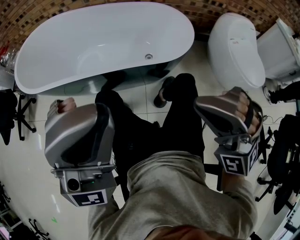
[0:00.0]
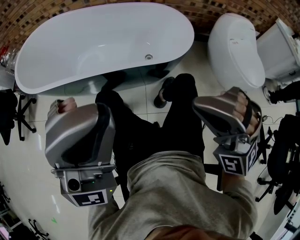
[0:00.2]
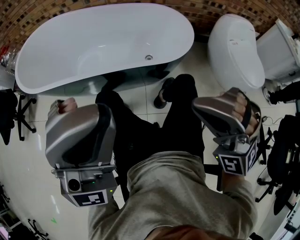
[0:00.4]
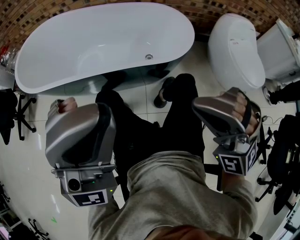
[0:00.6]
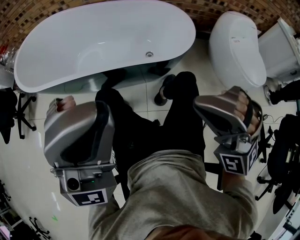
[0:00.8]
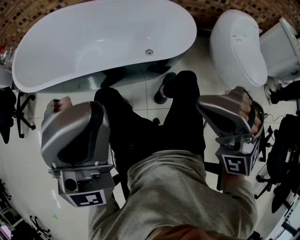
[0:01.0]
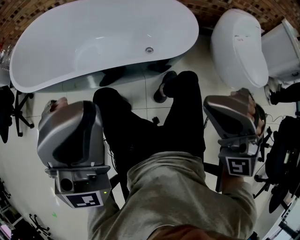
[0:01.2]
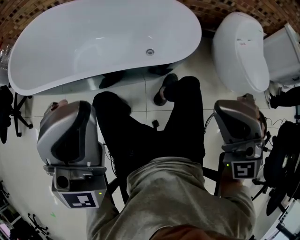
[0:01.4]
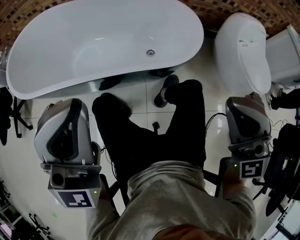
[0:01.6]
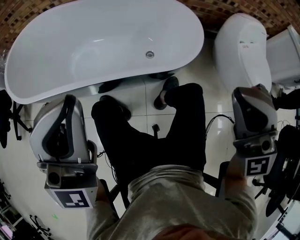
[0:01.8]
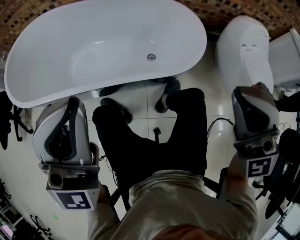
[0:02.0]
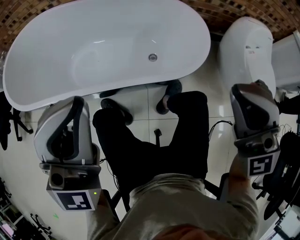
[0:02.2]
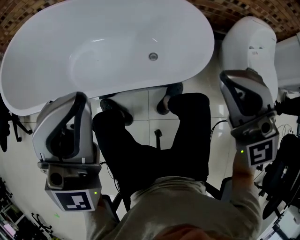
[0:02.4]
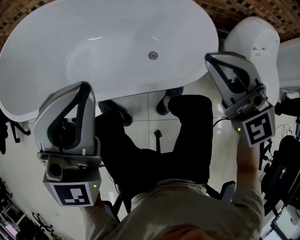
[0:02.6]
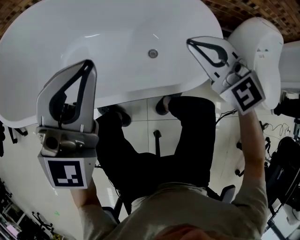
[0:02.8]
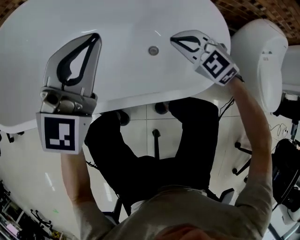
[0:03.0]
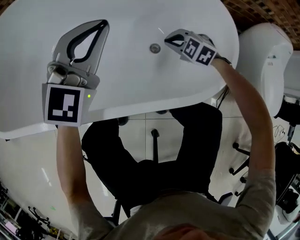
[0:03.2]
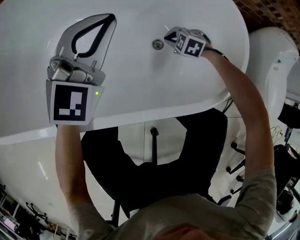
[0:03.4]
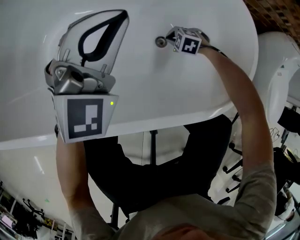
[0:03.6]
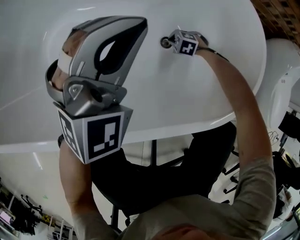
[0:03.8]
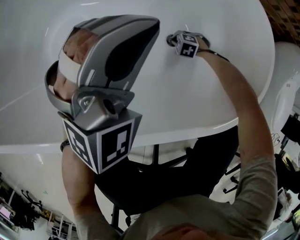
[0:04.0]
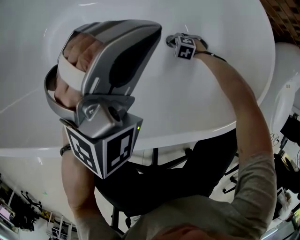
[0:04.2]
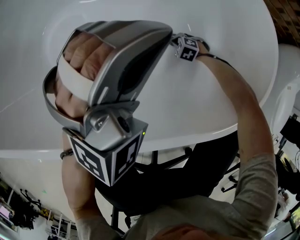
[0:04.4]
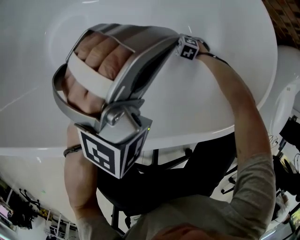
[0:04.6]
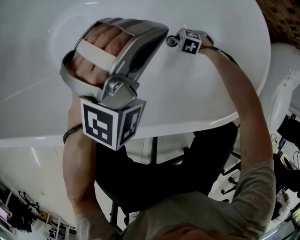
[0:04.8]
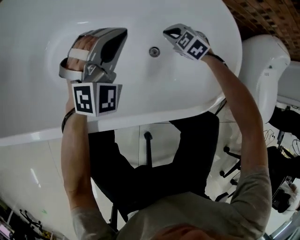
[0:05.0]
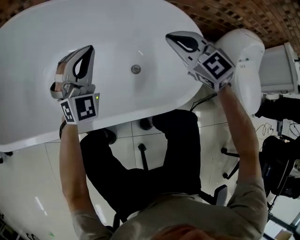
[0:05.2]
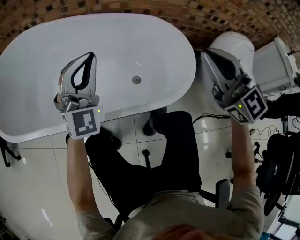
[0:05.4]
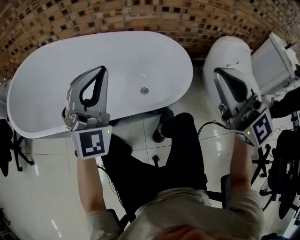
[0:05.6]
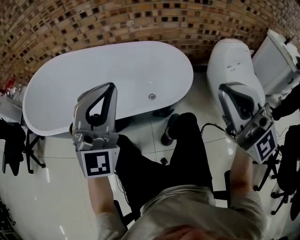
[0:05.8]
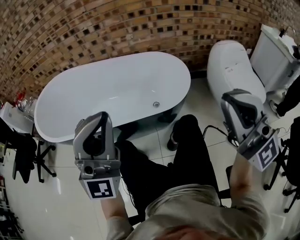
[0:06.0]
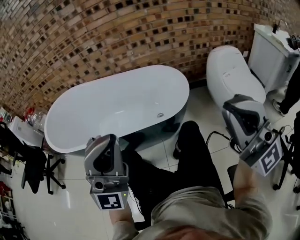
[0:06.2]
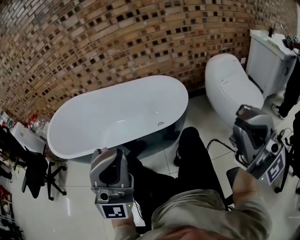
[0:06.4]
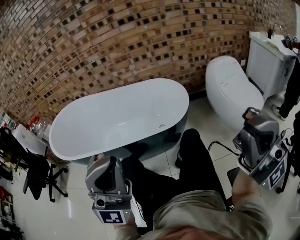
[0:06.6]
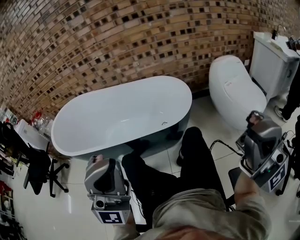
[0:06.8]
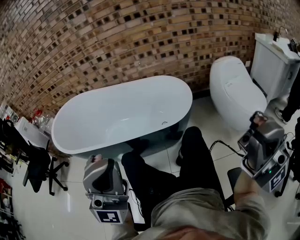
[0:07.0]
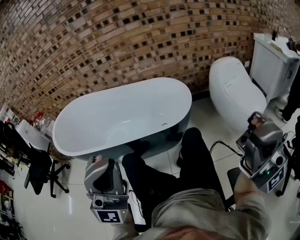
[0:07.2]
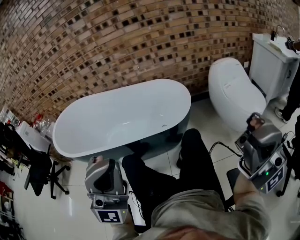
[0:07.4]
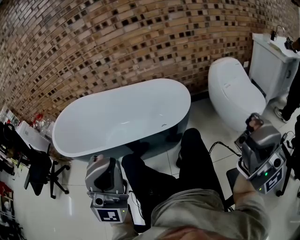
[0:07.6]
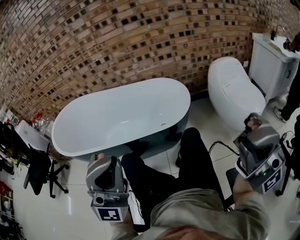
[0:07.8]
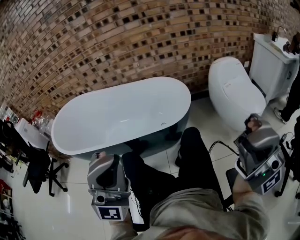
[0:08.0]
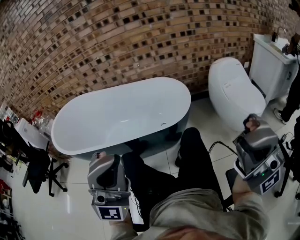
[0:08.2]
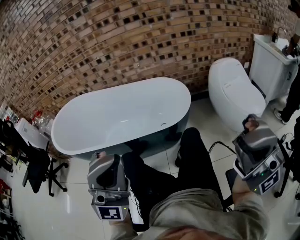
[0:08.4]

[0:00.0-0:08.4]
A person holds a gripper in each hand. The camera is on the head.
0:00.0 to 0:01.4: The left gripper is displaced forward by roughly 5 cm.
0:01.4 to 0:02.8: The two grippers go about 30 cm forward and downward. The right gripper turns by approximately 30 degrees.
0:02.8 to 0:04.2: The left gripper travels downward by about 20 cm, and changes its angle by some 30 degrees. Meanwhile the right gripper heads downward, covering roughly 60 cm, and points its fingers some 60 degrees further downward.
0:04.2 to 0:05.6: The left gripper travels upward by about 25 cm, and changes its angle by approximately 30 degrees. The right gripper shifts some 80 cm upward, and tips its fingers upward by about 90 degrees.
0:05.6 to 0:07.0: The grippers both shift backward by some 35 cm. The right gripper tips its fingers upward by about 30 degrees, while the left gripper turns by roughly 30 degrees.
0:07.0 to 0:08.4: The grippers stay close to where they were, moving slightly.

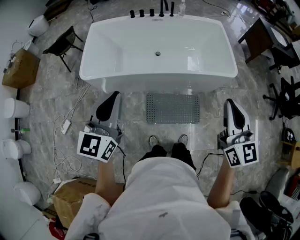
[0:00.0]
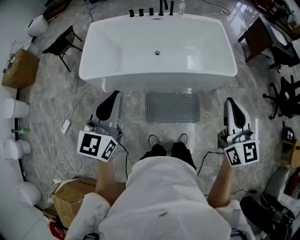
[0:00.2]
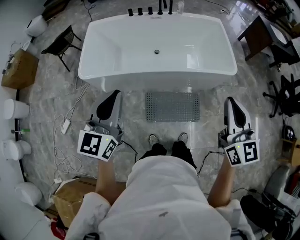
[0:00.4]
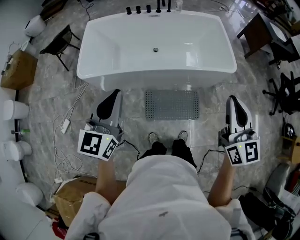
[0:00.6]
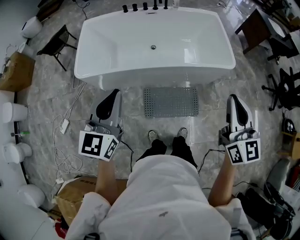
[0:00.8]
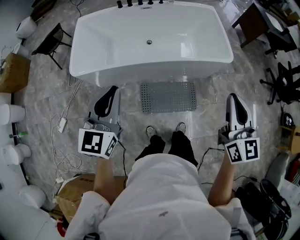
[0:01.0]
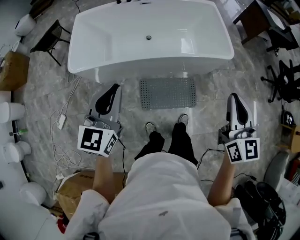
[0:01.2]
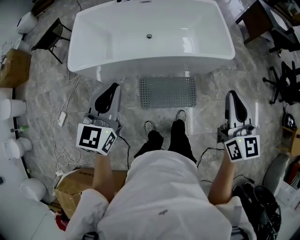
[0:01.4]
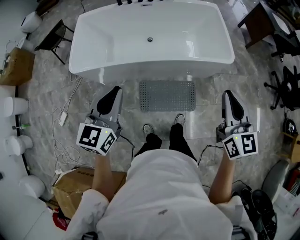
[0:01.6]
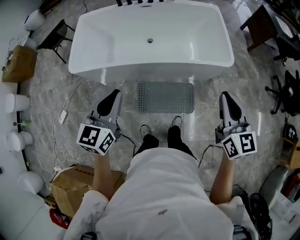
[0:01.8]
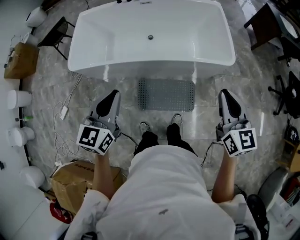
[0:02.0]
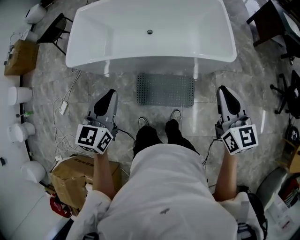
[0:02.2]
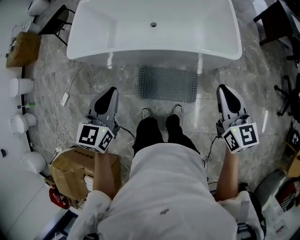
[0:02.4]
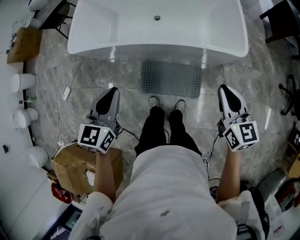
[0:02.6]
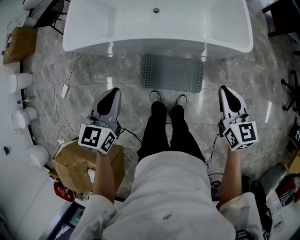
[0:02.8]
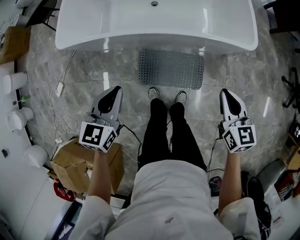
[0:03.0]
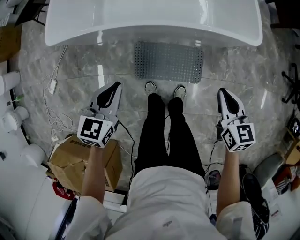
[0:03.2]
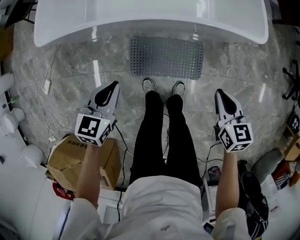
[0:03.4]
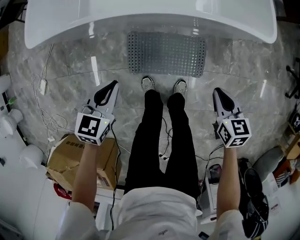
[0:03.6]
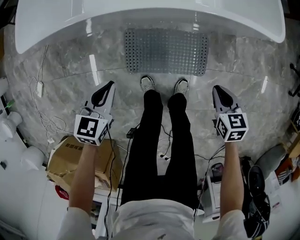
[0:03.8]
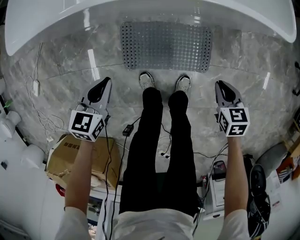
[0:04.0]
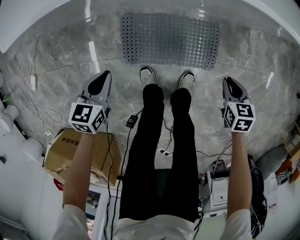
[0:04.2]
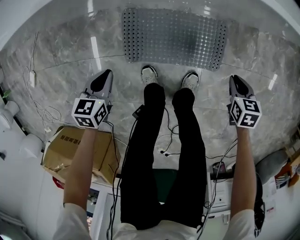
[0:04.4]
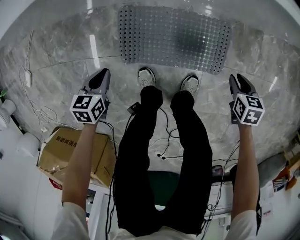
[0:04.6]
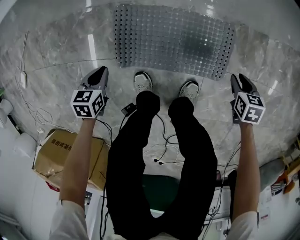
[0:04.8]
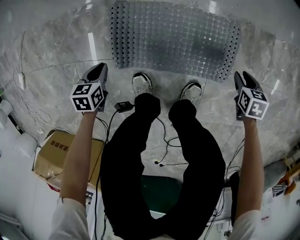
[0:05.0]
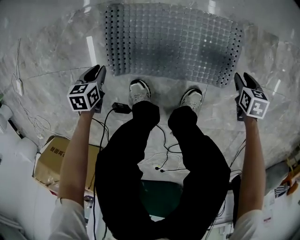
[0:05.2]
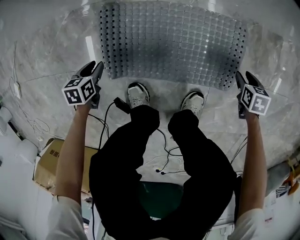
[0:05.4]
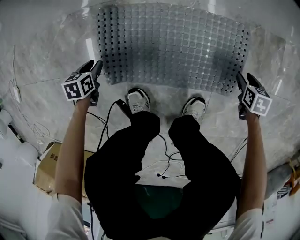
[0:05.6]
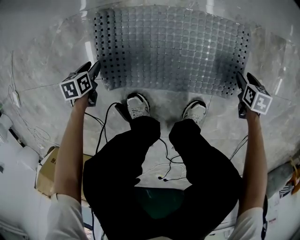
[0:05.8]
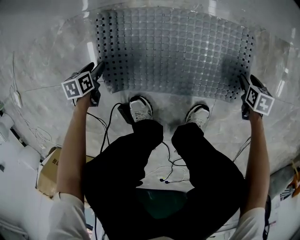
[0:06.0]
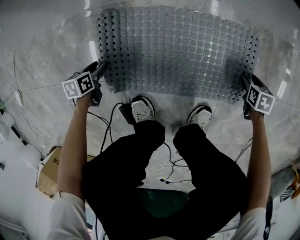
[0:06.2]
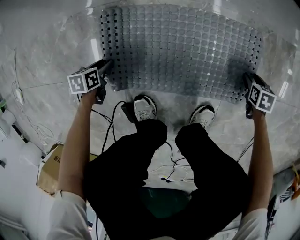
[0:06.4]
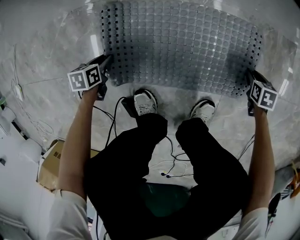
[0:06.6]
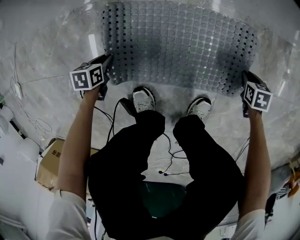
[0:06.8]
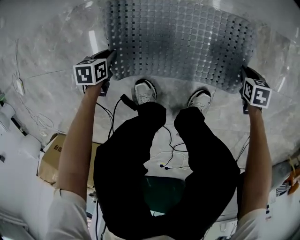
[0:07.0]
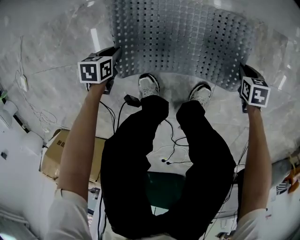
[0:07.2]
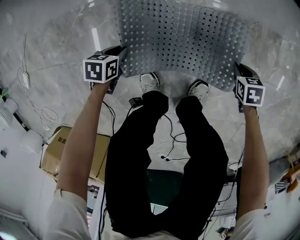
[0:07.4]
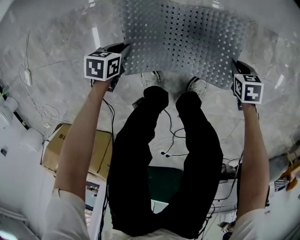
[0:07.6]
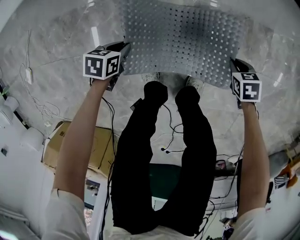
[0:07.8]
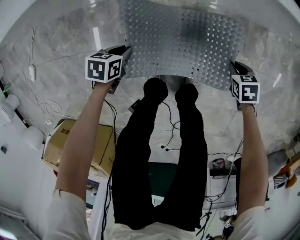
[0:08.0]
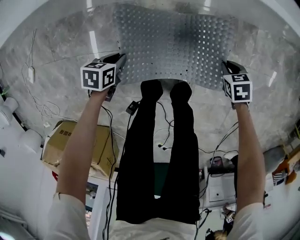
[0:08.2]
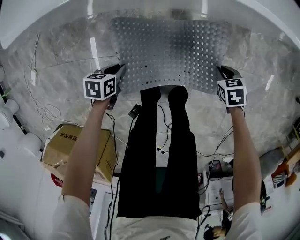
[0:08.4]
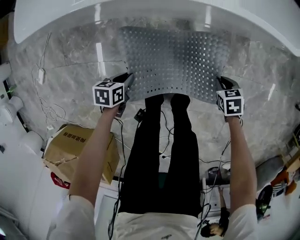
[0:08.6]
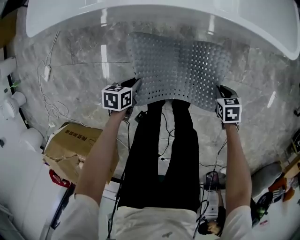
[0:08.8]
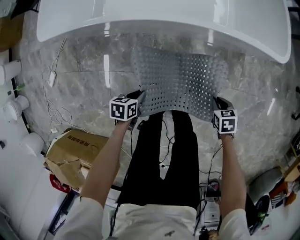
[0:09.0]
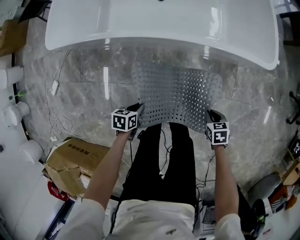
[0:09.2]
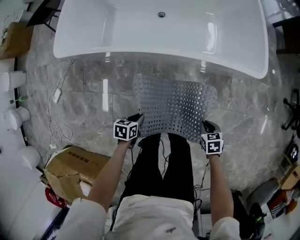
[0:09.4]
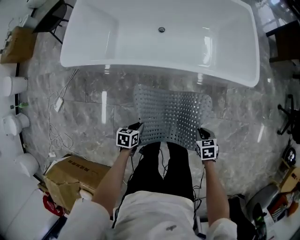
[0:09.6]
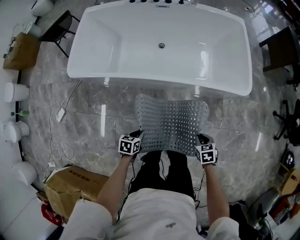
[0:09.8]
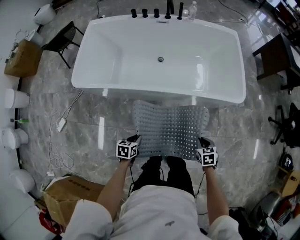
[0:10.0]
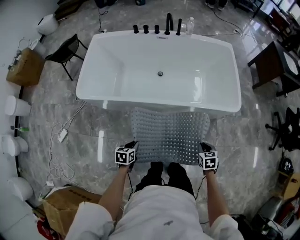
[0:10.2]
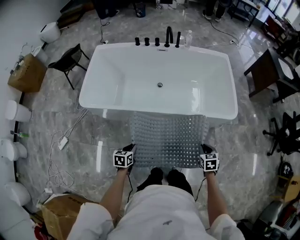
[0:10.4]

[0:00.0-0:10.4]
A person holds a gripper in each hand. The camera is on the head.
0:00.0 to 0:01.4: Both grippers travel together to the right, roughly 5 cm.
0:01.4 to 0:03.0: The grippers both shift downward and to the right by approximately 25 cm. The right gripper swivels roughly 30 degrees. Meanwhile the left gripper turns by roughly 20 degrees.
0:03.0 to 0:04.4: Both grippers move downward, roughly 50 cm. The left gripper swivels some 30 degrees; the right gripper tips its fingers downward by about 40 degrees.
0:04.4 to 0:06.0: The grippers both shift downward by about 40 cm. The right gripper opens, while the left gripper turns by about 20 degrees, and opens up.
0:06.0 to 0:07.4: The two grippers go some 15 cm upward. The right gripper closes, while the left gripper closes.
0:07.4 to 0:09.0: The two grippers go some 35 cm upward.
0:09.0 to 0:10.4: The left gripper moves upward and to the left, roughly 30 cm, and turns by approximately 20 degrees. The right gripper travels upward by roughly 30 cm, and rotates roughly 30 degrees.

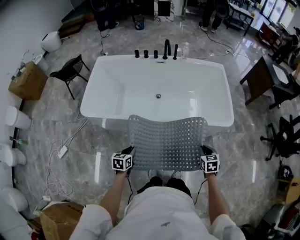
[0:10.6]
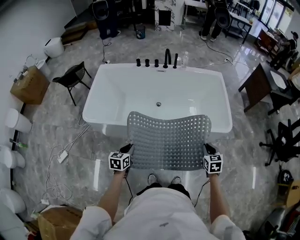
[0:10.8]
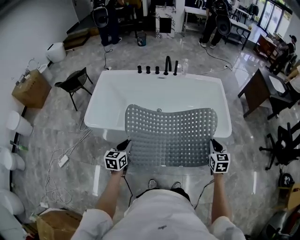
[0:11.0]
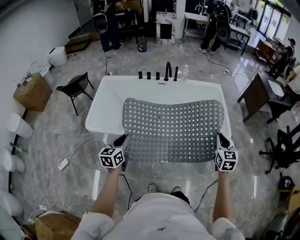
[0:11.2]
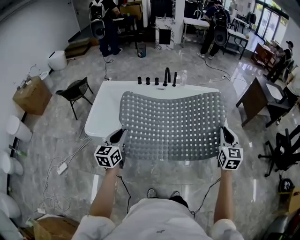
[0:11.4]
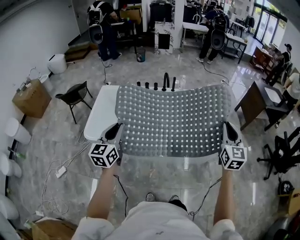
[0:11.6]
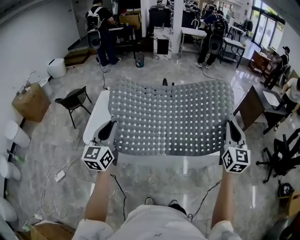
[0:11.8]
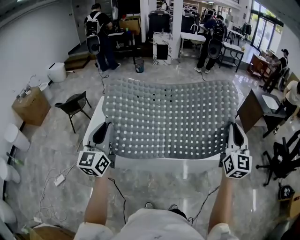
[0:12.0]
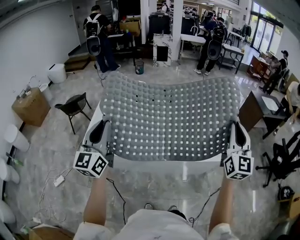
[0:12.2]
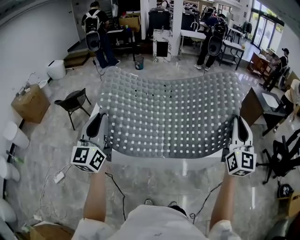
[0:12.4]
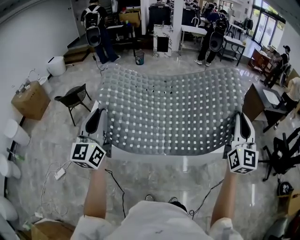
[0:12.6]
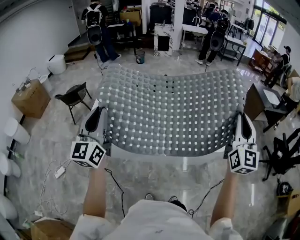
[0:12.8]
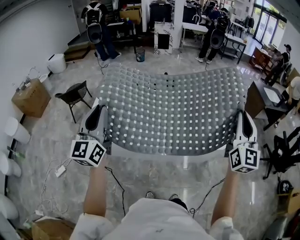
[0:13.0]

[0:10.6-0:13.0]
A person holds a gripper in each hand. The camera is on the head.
0:10.6 to 0:11.8: The two grippers go roughly 40 cm upward. The right gripper tilts its fingers approximately 50 degrees upward; the left gripper points its fingers some 50 degrees further upward.
0:11.8 to 0:13.0: The two grippers go roughly 10 cm upward.

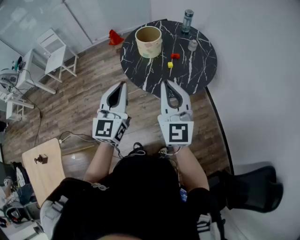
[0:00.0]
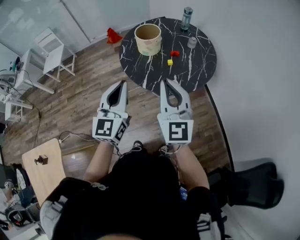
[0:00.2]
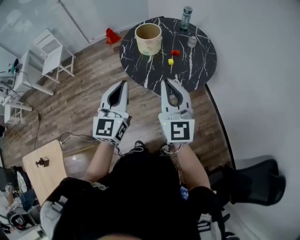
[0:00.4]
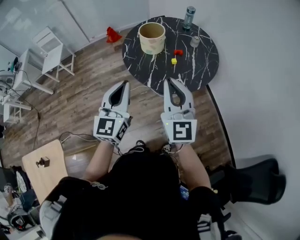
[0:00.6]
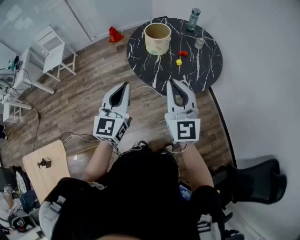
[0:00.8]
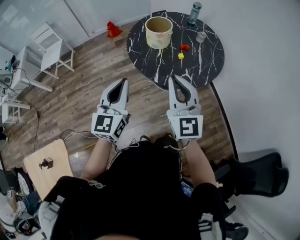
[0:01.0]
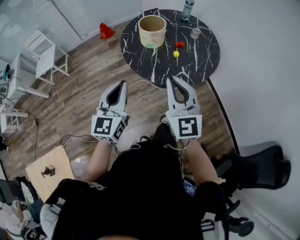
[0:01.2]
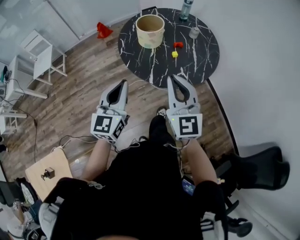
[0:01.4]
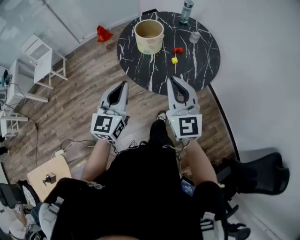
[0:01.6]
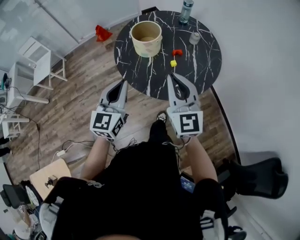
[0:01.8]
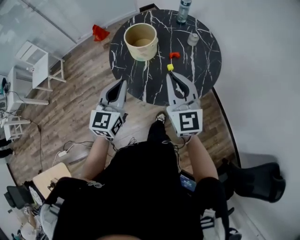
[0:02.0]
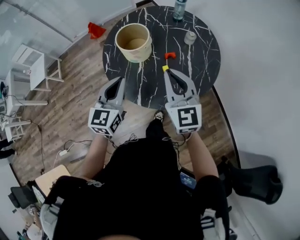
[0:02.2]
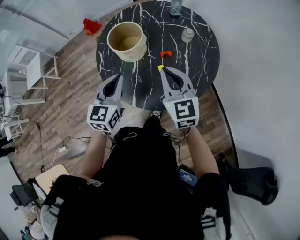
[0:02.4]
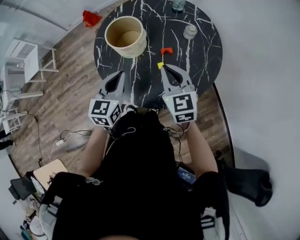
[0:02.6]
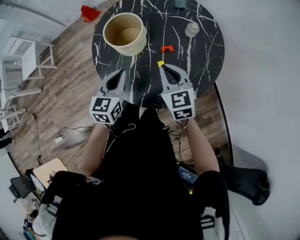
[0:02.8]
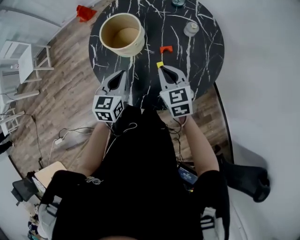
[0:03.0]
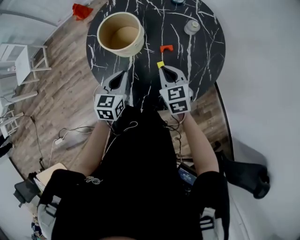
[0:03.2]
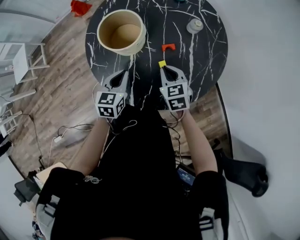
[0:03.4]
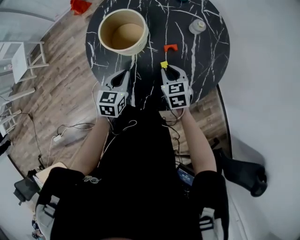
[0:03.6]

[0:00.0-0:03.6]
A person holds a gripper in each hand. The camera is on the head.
0:00.0 to 0:01.8: The right gripper travels forward and downward by approximately 15 cm; the left gripper travels forward, downward and to the left by approximately 15 cm.
0:01.8 to 0:03.6: Both grippers travel together downward and forward, about 35 cm. The right gripper angles its fingers downward, by roughly 50 degrees, while the left gripper tips its fingers downward by roughly 30 degrees.
